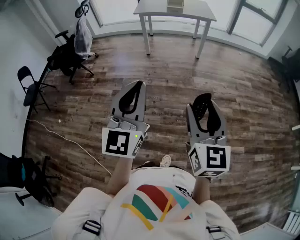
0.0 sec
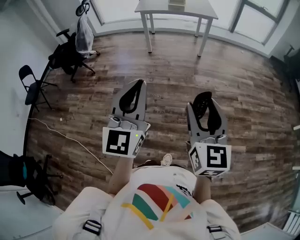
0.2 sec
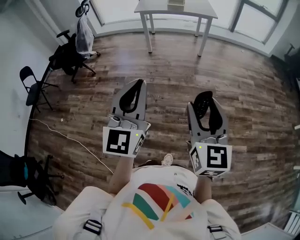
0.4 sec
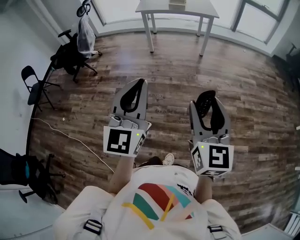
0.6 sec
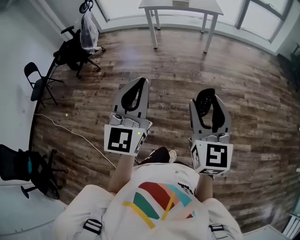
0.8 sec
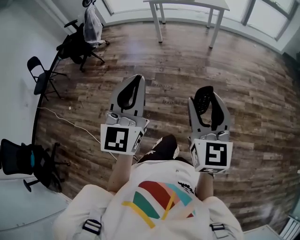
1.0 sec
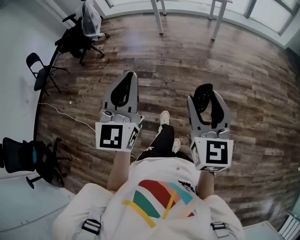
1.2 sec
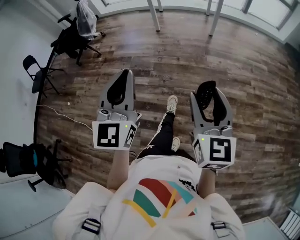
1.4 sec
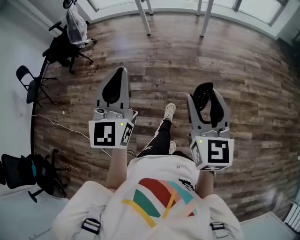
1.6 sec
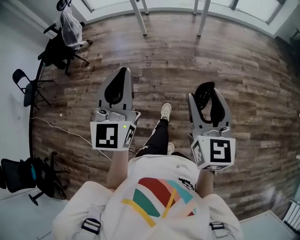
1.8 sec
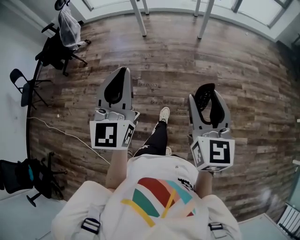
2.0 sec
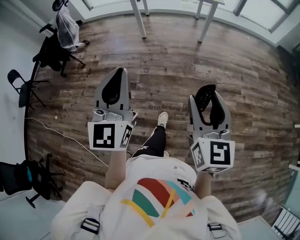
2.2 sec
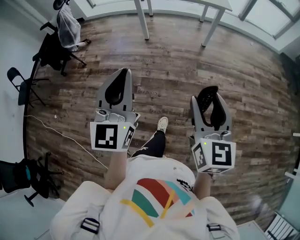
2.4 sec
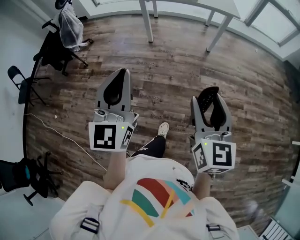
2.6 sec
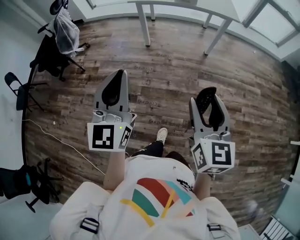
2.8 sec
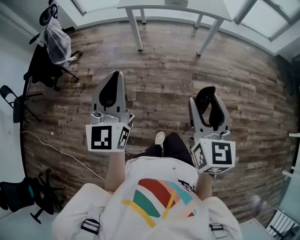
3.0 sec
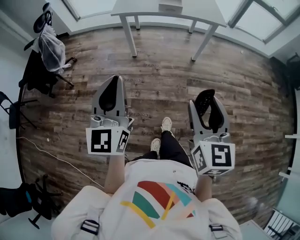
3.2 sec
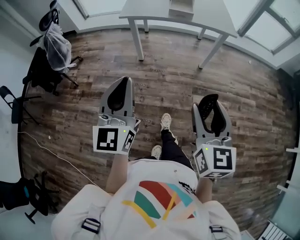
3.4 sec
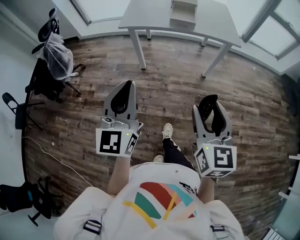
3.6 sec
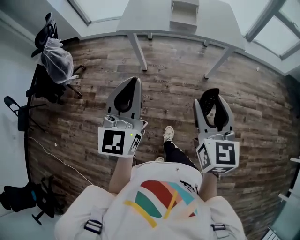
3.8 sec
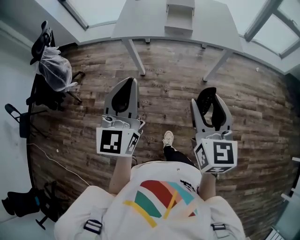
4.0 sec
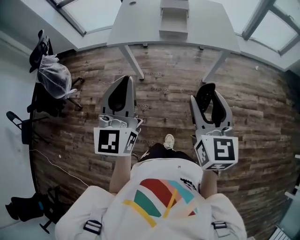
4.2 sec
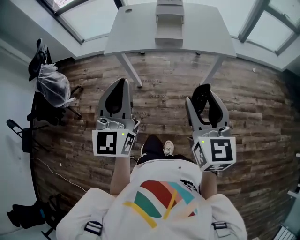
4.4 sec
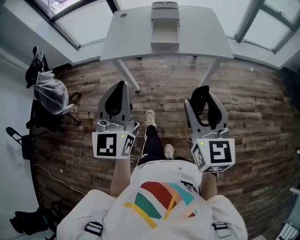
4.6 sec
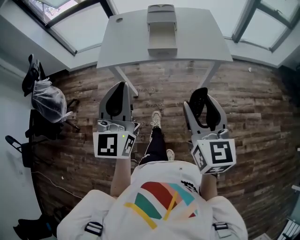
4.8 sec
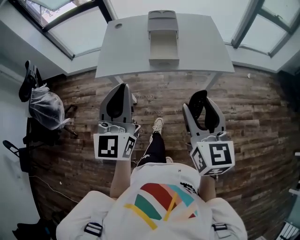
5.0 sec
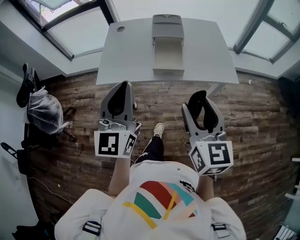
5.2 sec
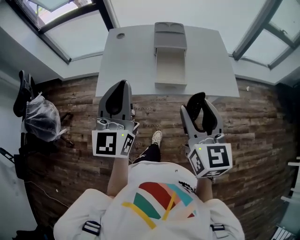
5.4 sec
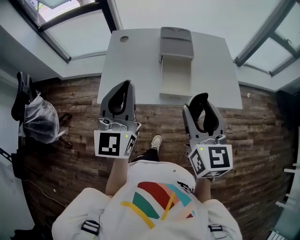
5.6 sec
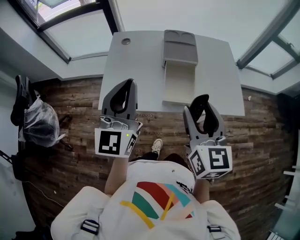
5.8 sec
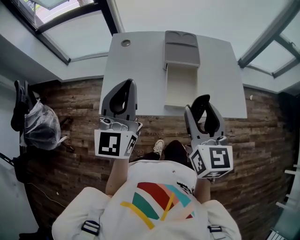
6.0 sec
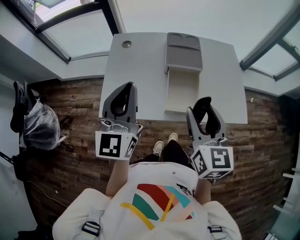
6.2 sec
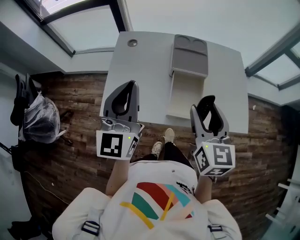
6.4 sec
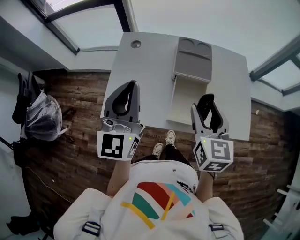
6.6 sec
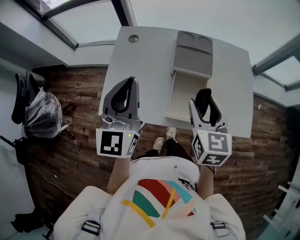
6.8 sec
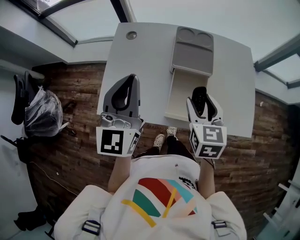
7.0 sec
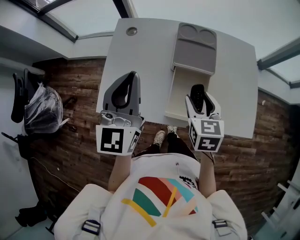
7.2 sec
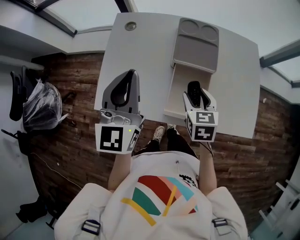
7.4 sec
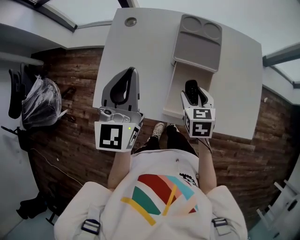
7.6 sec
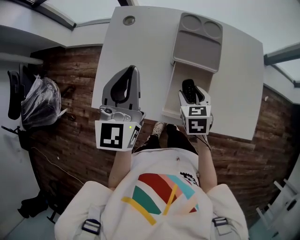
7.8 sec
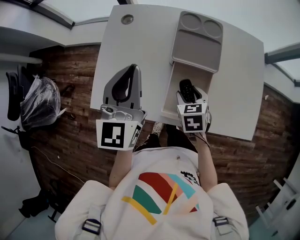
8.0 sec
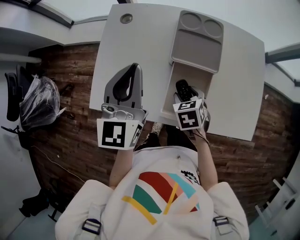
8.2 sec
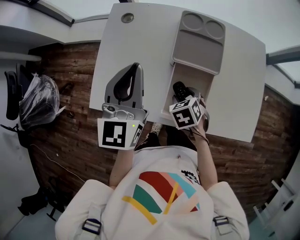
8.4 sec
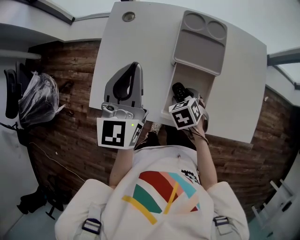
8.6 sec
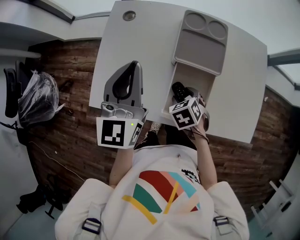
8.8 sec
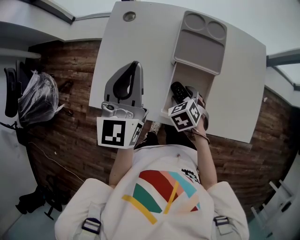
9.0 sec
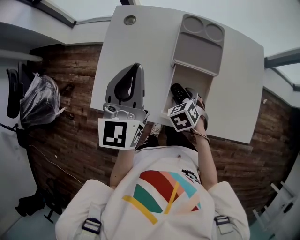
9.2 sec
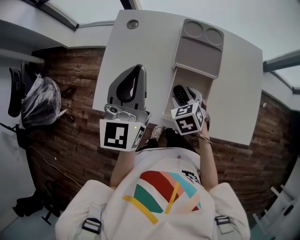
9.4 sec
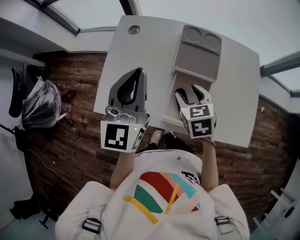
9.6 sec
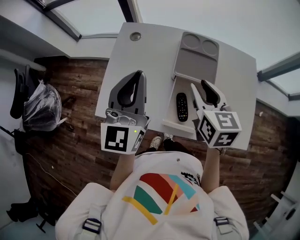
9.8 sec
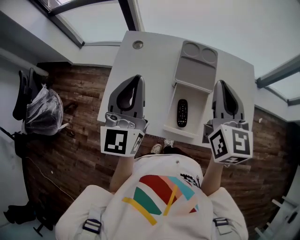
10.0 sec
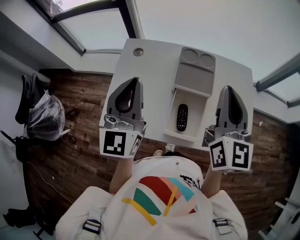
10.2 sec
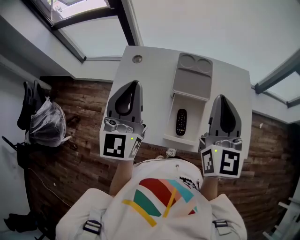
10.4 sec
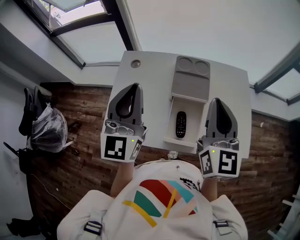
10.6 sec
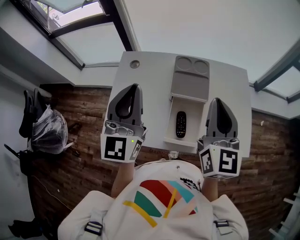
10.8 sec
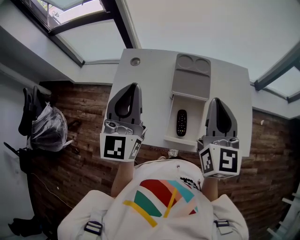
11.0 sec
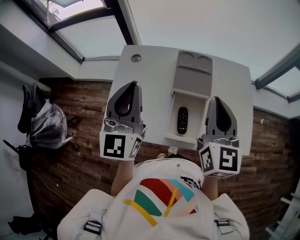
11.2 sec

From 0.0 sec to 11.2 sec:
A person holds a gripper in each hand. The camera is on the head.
From 0.0 sec to 1.6 sec: The grippers both shift forward by about 5 cm.
From 1.6 sec to 3.2 sec: Both grippers travel together forward, some 40 cm.
From 3.2 sec to 4.8 sec: The grippers both shift forward by roughly 35 cm.
From 4.8 sec to 6.4 sec: The grippers both shift forward by about 40 cm.
From 6.4 sec to 8.0 sec: The left gripper heads forward and downward, covering approximately 15 cm, while the right gripper is displaced downward and forward by about 25 cm, and tilts its fingers roughly 40 degrees downward.
From 8.0 sec to 9.6 sec: The right gripper is displaced upward by about 10 cm.
From 9.6 sec to 11.2 sec: The left gripper heads upward, covering approximately 5 cm, while the right gripper travels upward by roughly 20 cm, angles its fingers upward, by some 40 degrees, and closes up.

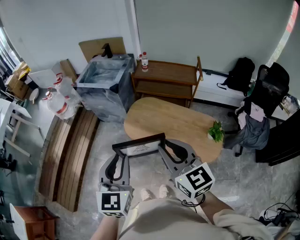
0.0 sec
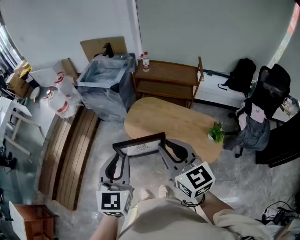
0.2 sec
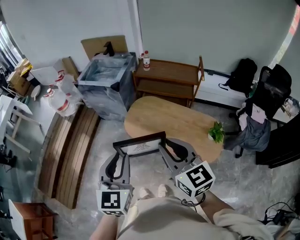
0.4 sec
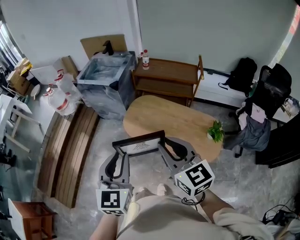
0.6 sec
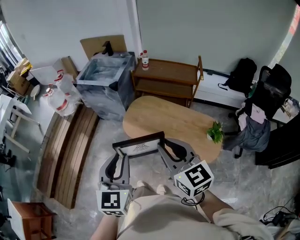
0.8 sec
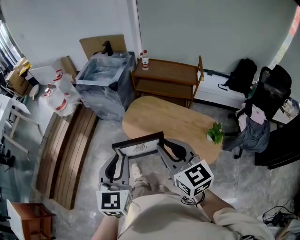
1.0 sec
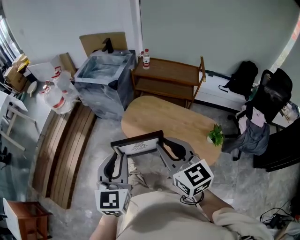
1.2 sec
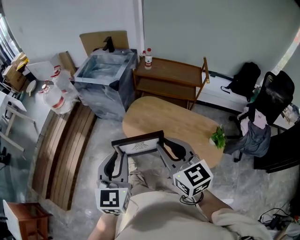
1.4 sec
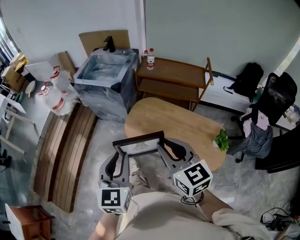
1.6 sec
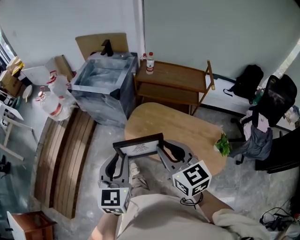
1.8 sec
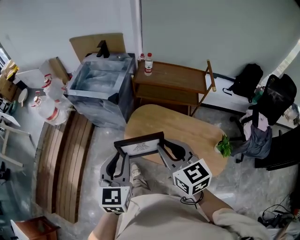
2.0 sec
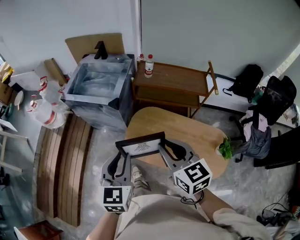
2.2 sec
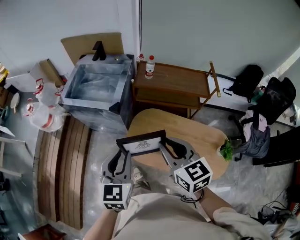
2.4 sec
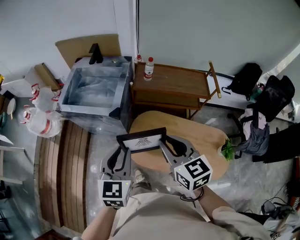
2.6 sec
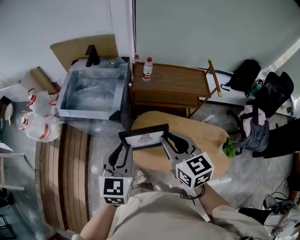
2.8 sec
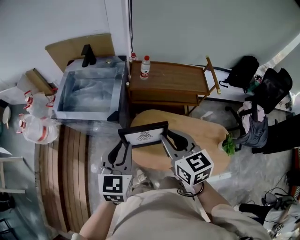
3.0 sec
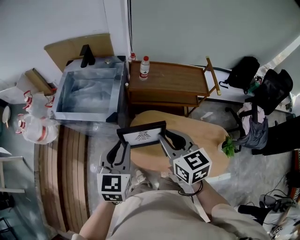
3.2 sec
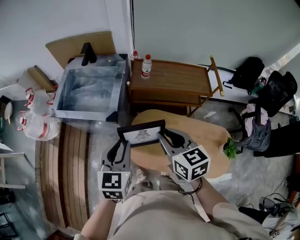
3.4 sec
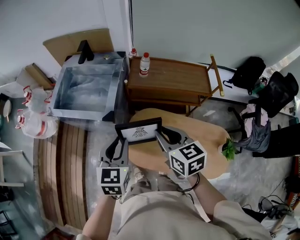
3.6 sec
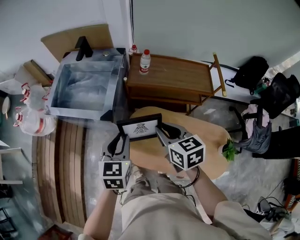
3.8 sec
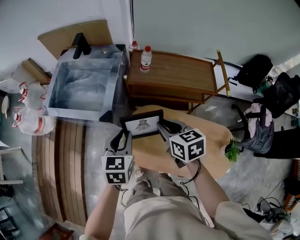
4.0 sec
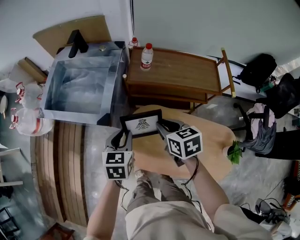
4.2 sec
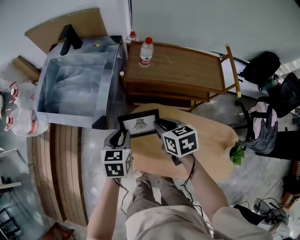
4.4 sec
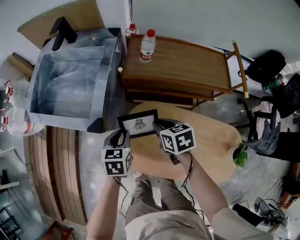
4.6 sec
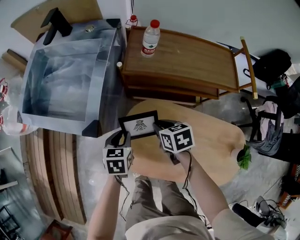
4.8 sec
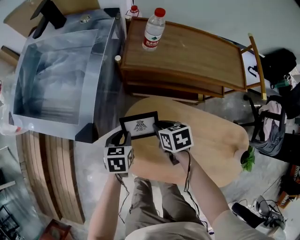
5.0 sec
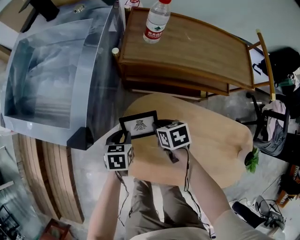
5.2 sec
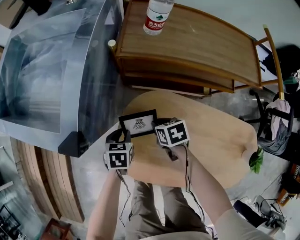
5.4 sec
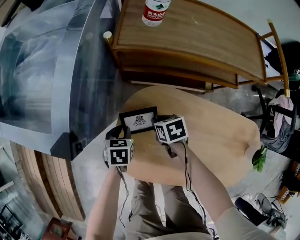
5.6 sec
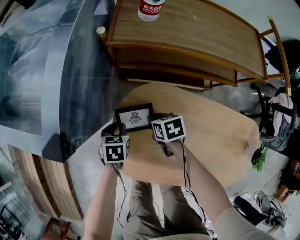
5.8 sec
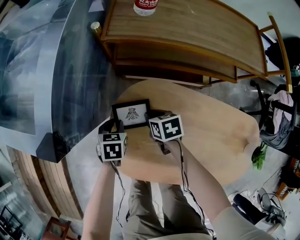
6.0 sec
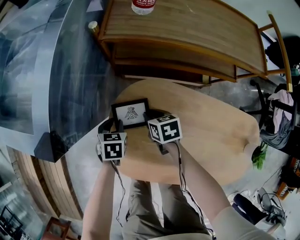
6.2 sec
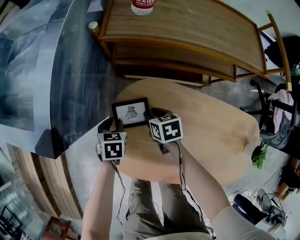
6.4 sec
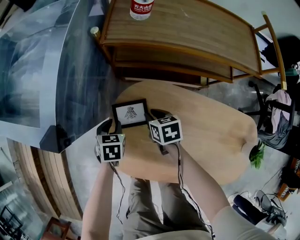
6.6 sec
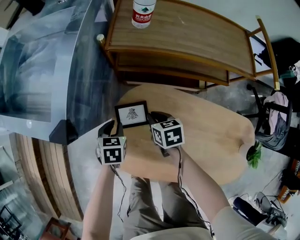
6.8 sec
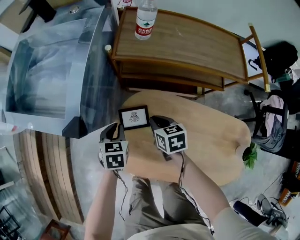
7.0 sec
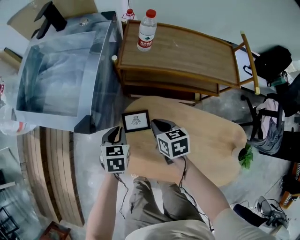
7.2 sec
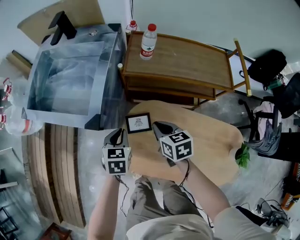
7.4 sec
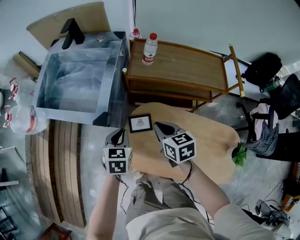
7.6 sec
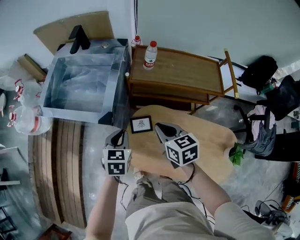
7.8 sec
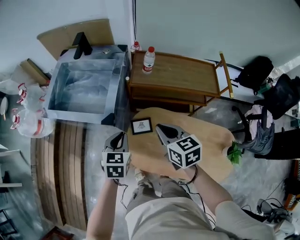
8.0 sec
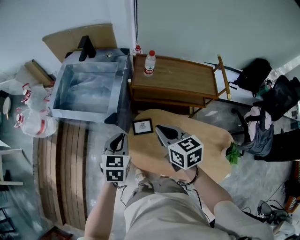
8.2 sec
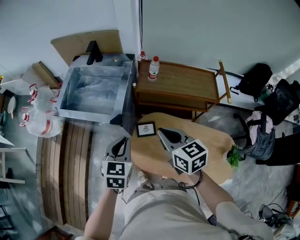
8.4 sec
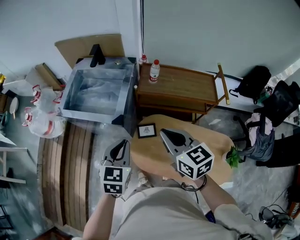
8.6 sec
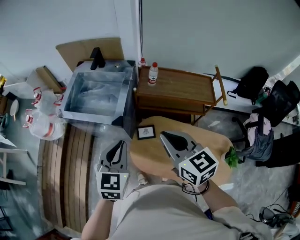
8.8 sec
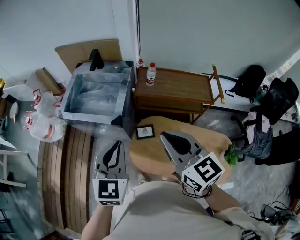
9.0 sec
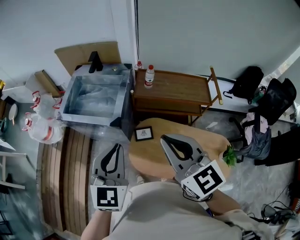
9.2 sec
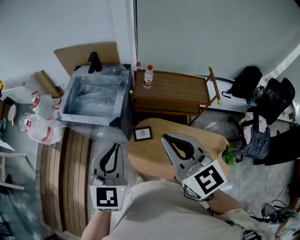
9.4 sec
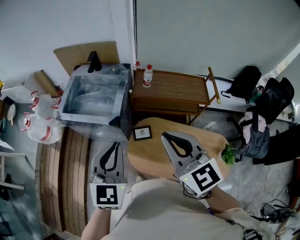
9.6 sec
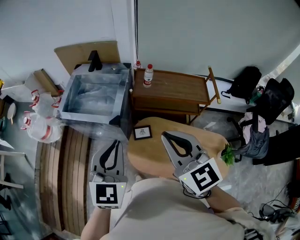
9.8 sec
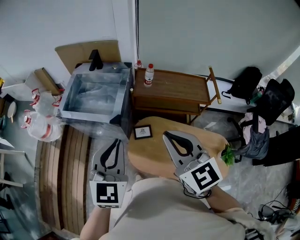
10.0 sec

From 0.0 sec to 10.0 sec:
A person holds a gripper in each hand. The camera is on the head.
From 0.0 sec to 1.4 sec: The grippers both shift forward and downward by roughly 10 cm.
From 1.4 sec to 2.8 sec: Both grippers travel together forward, some 40 cm.
From 2.8 sec to 4.2 sec: The grippers both shift downward and forward by some 25 cm. The right gripper swivels roughly 20 degrees. The left gripper changes its angle by about 20 degrees.
From 4.2 sec to 5.8 sec: Both grippers travel together downward, approximately 40 cm. The left gripper rotates about 30 degrees. The right gripper swivels approximately 30 degrees.
From 5.8 sec to 7.2 sec: Both grippers move upward, about 20 cm. The right gripper swivels some 20 degrees.
From 7.2 sec to 8.6 sec: Both grippers move upward, about 40 cm. The left gripper changes its angle by some 20 degrees. Meanwhile the right gripper rotates about 30 degrees.
From 8.6 sec to 10.0 sec: The left gripper travels upward by about 15 cm, while the right gripper goes approximately 15 cm upward and backward, and rotates about 20 degrees.

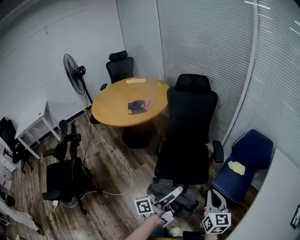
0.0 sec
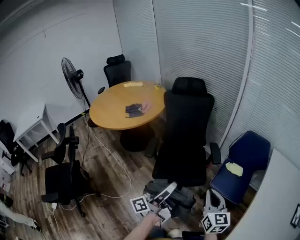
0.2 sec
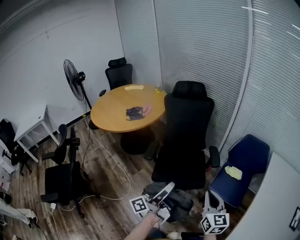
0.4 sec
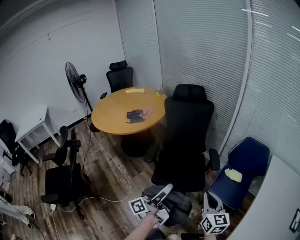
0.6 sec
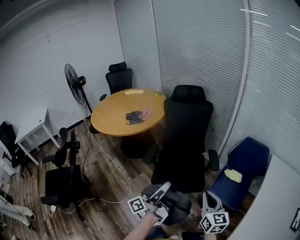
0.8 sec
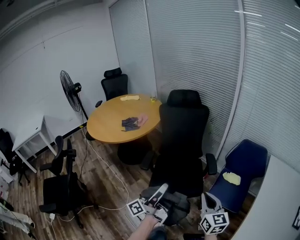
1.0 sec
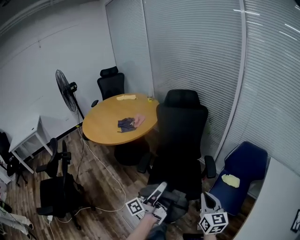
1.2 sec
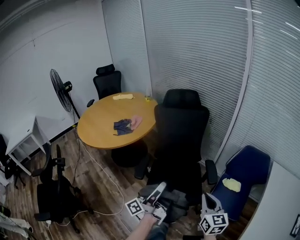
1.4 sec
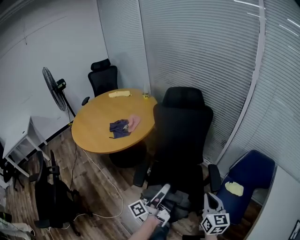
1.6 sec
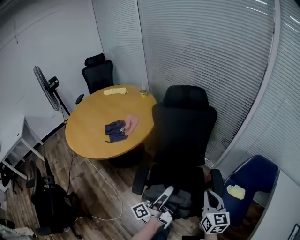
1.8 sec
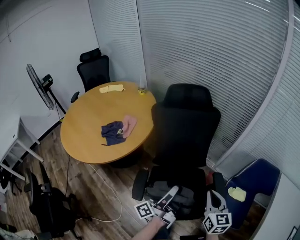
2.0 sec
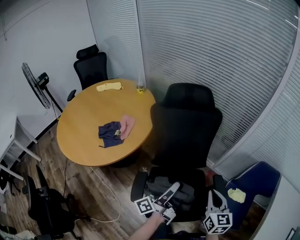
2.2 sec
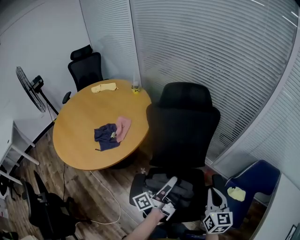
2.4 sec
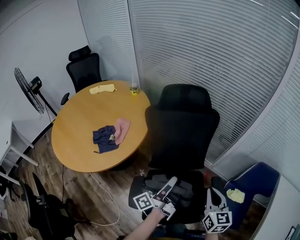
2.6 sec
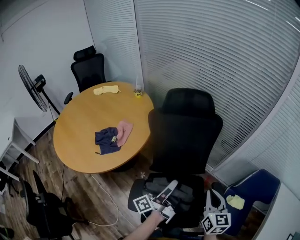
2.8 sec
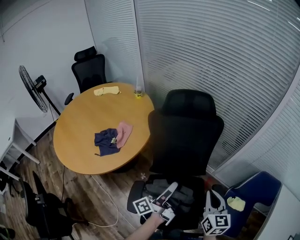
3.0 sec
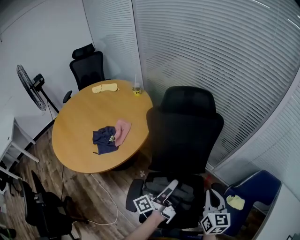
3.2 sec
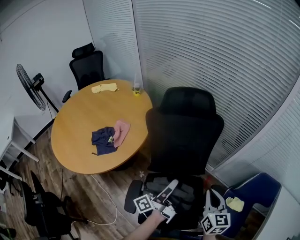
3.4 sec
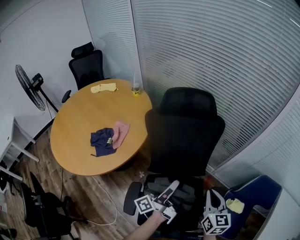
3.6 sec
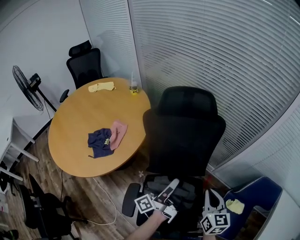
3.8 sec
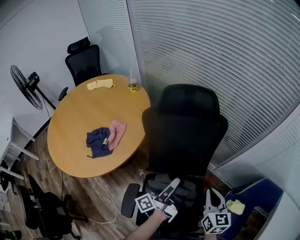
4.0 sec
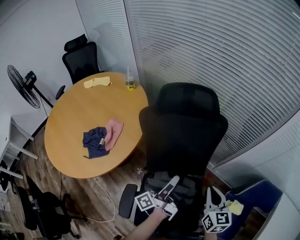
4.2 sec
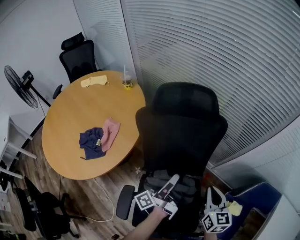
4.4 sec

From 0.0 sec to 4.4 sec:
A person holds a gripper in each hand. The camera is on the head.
From 0.0 sec to 1.4 sec: The right gripper ends up roughly 15 cm from where it was.
From 1.4 sec to 3.0 sec: The right gripper moves about 35 cm.
From 3.0 sec to 4.4 sec: The right gripper changes place by about 15 cm.
